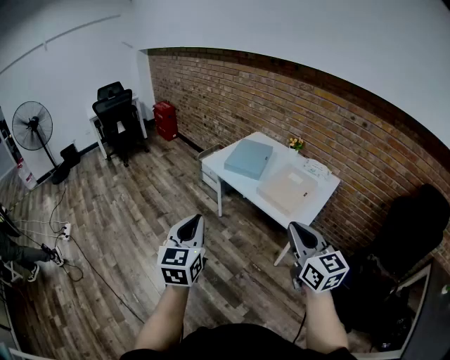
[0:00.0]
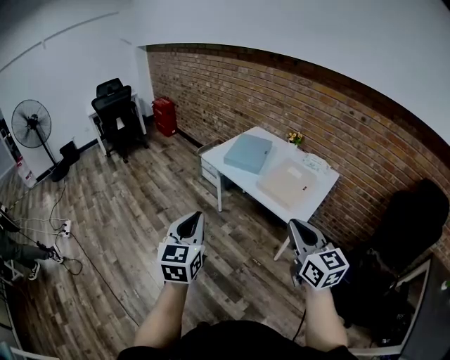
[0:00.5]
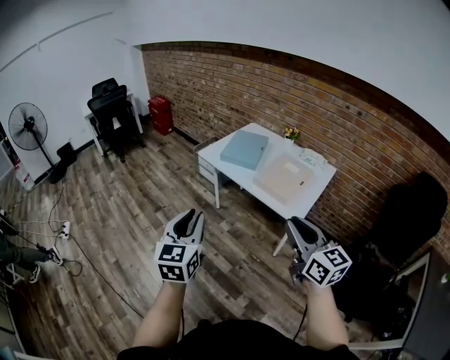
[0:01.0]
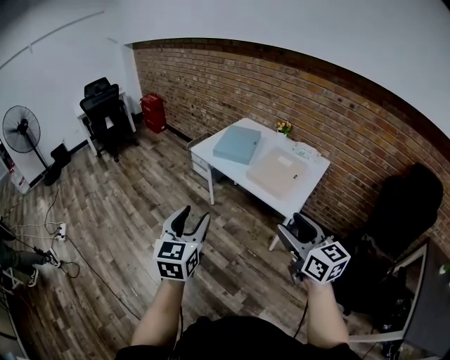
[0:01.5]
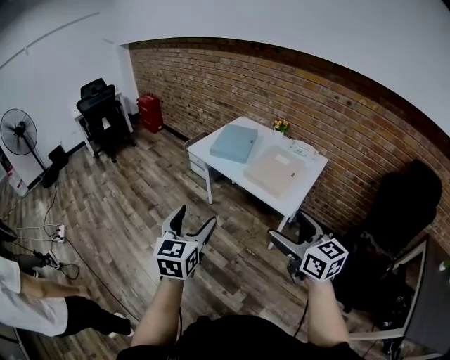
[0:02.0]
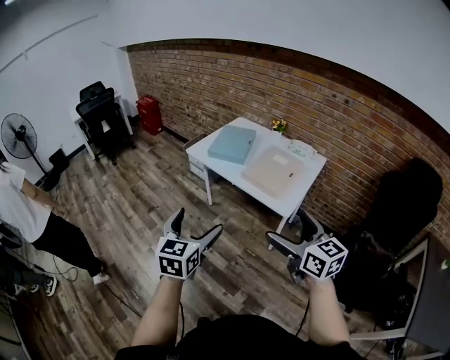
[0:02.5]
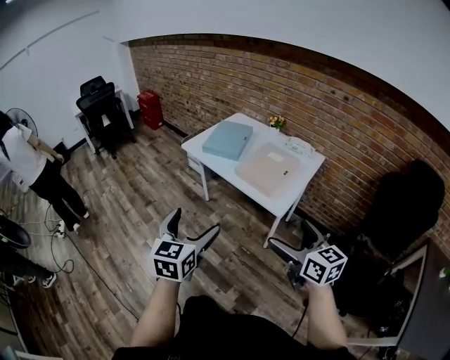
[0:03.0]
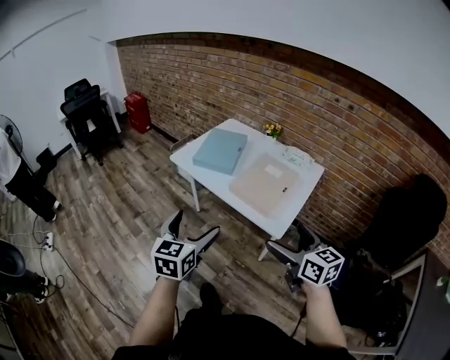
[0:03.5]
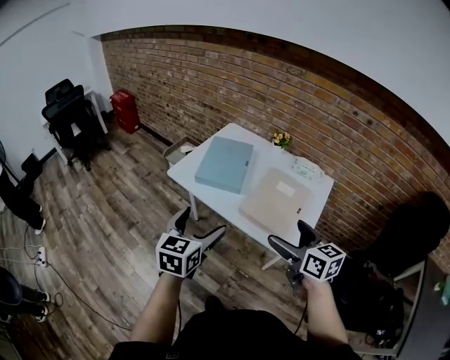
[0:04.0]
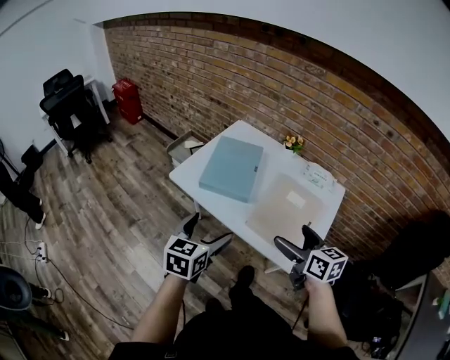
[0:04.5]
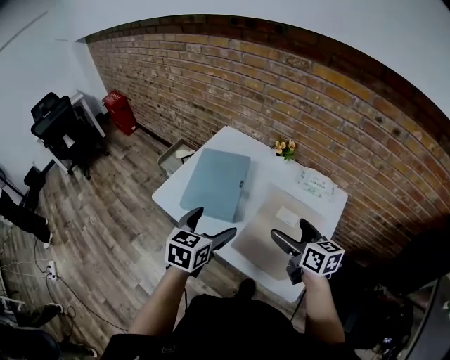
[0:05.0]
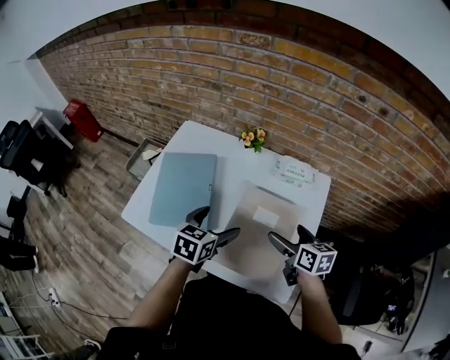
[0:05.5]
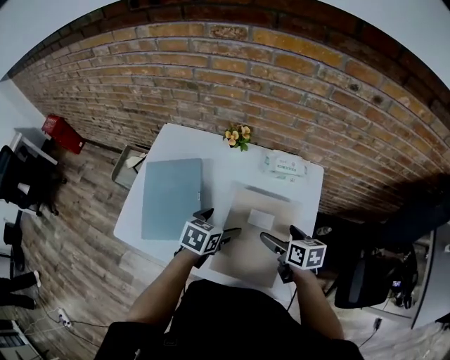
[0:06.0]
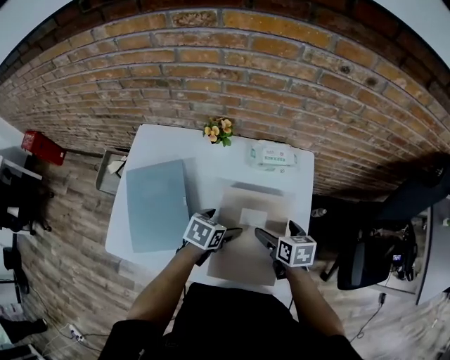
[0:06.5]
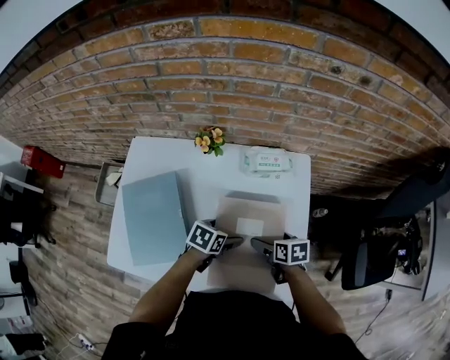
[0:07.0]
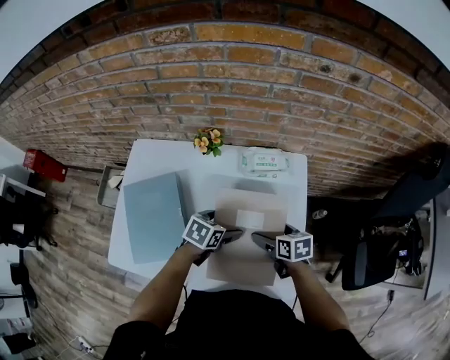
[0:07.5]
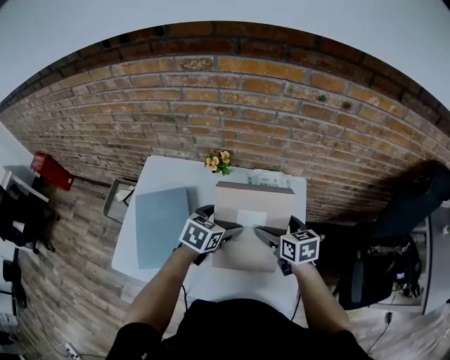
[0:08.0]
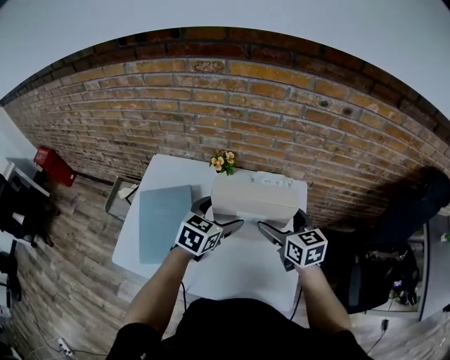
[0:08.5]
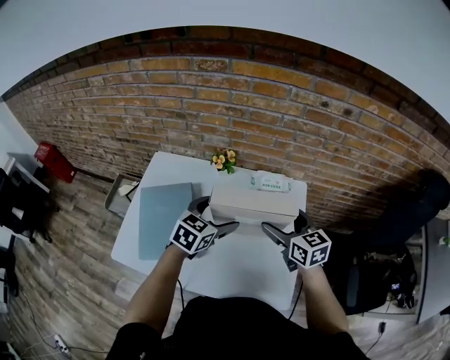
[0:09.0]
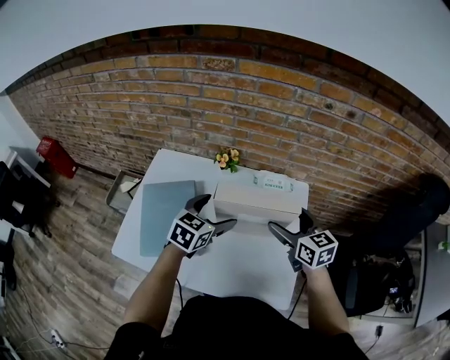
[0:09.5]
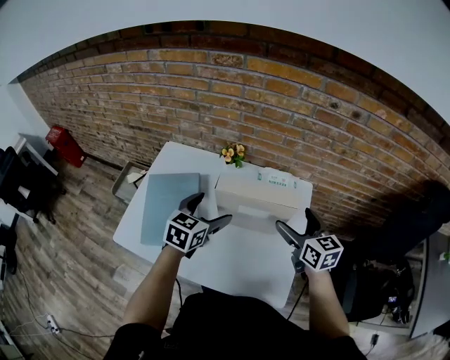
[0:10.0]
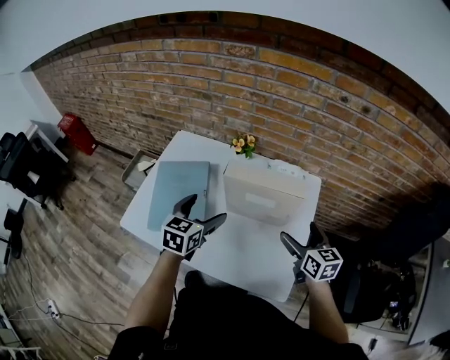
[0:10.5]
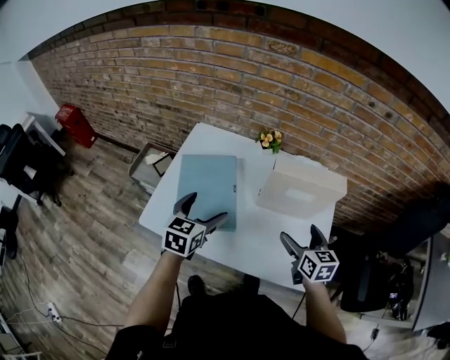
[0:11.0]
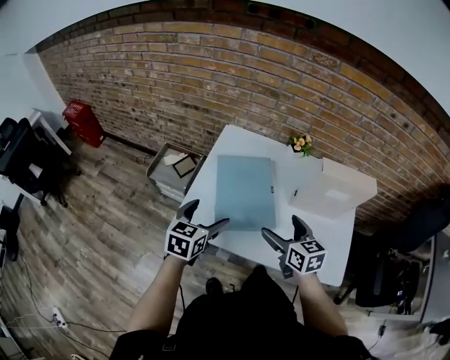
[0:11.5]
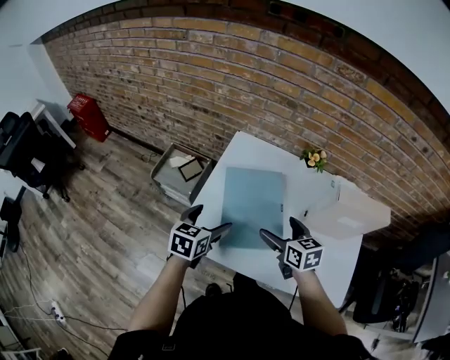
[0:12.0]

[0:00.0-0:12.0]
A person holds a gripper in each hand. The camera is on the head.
0:00.0 to 0:02.0: The left gripper opens its fingers. Meanwhile the right gripper opens up.
0:02.0 to 0:04.0: Both grippers move forward, some 25 cm.
0:04.0 to 0:06.0: The right gripper shifts by approximately 35 cm, and changes its angle by approximately 40 degrees, while the left gripper moves about 40 cm, and turns by about 50 degrees.
0:06.0 to 0:08.0: Both grippers travel together forward and upward, some 10 cm.
0:08.0 to 0:10.0: The left gripper heads upward and to the left, covering some 10 cm. The right gripper heads upward, covering some 10 cm.
0:10.0 to 0:12.0: Both grippers move to the left, some 35 cm.

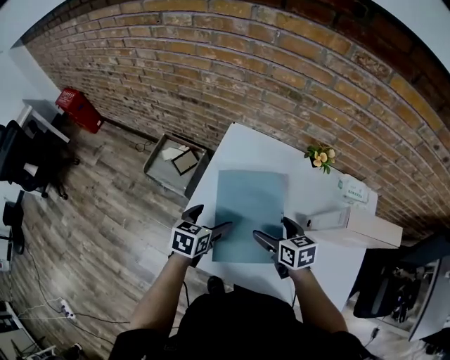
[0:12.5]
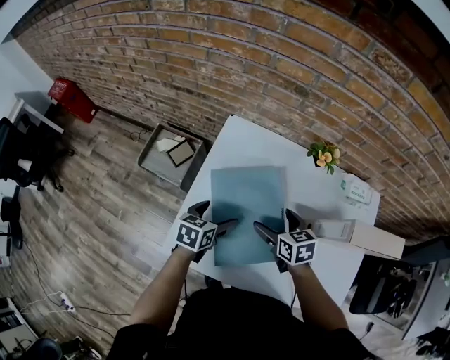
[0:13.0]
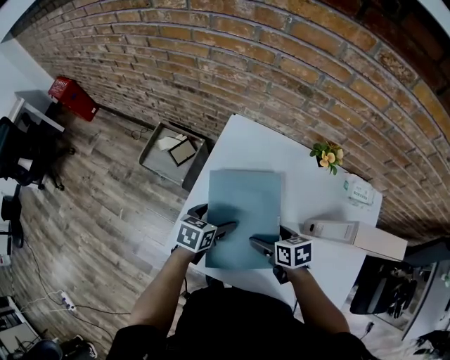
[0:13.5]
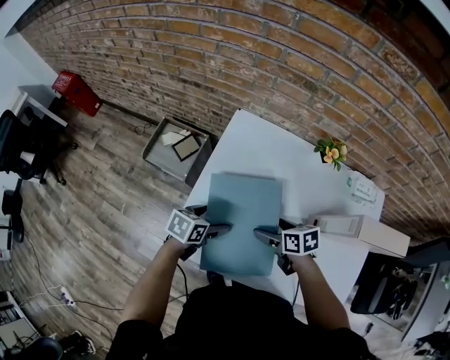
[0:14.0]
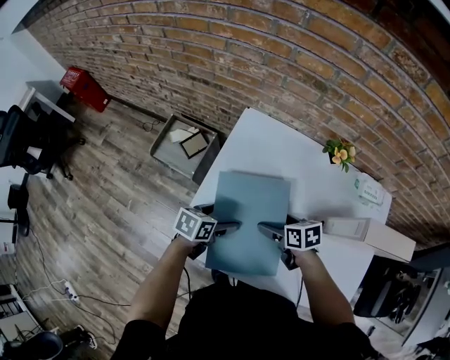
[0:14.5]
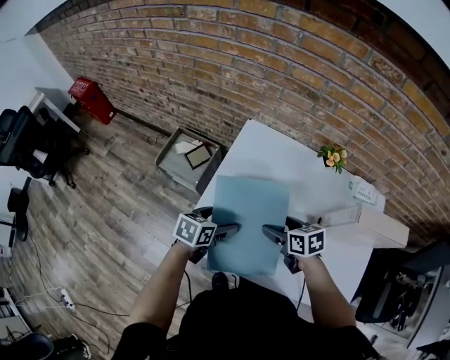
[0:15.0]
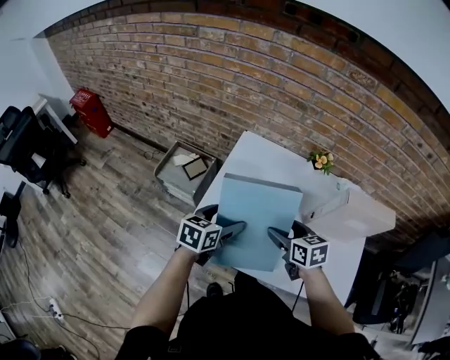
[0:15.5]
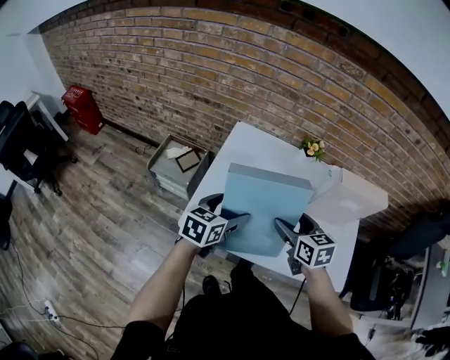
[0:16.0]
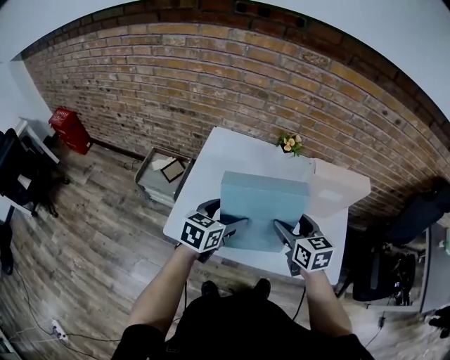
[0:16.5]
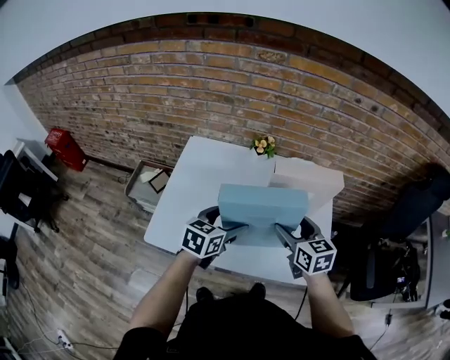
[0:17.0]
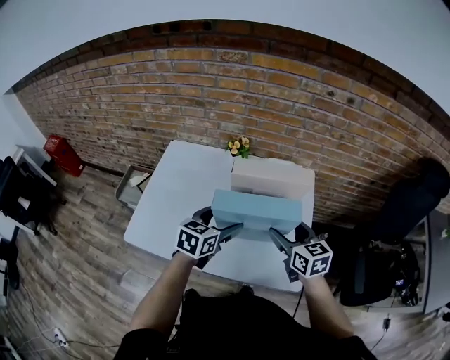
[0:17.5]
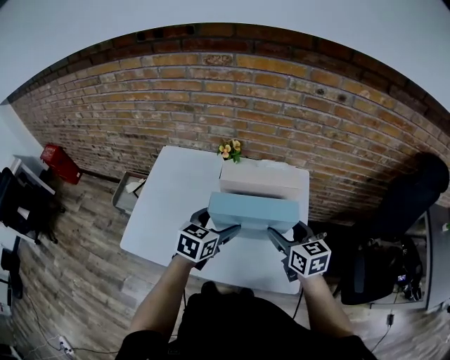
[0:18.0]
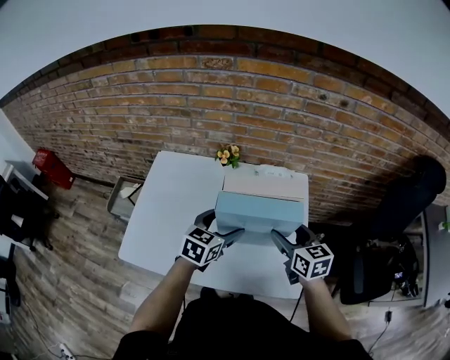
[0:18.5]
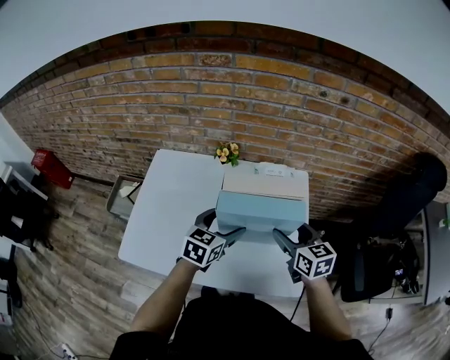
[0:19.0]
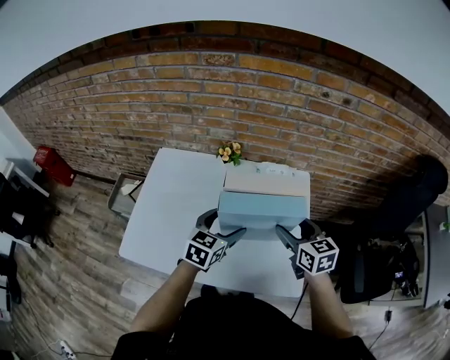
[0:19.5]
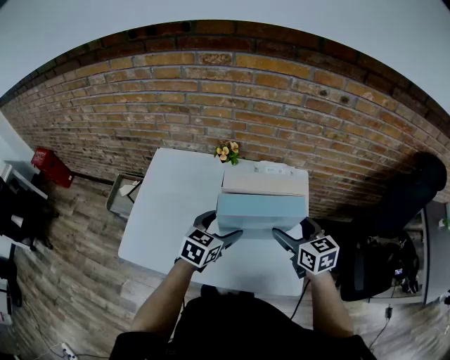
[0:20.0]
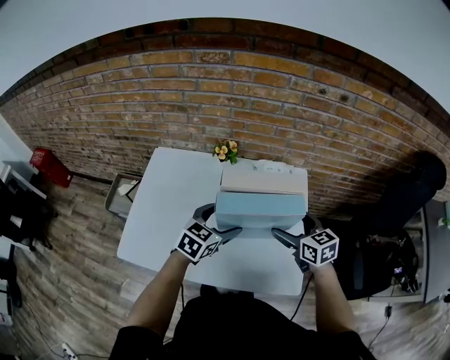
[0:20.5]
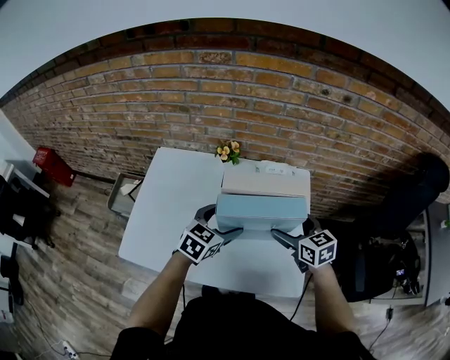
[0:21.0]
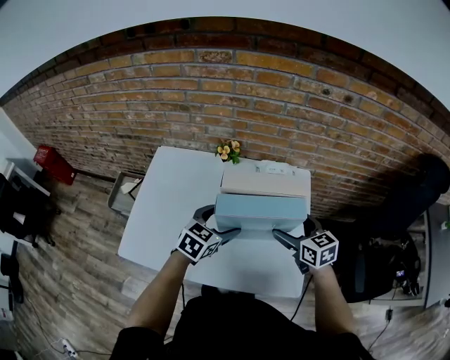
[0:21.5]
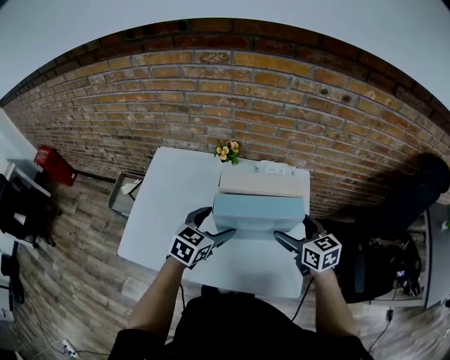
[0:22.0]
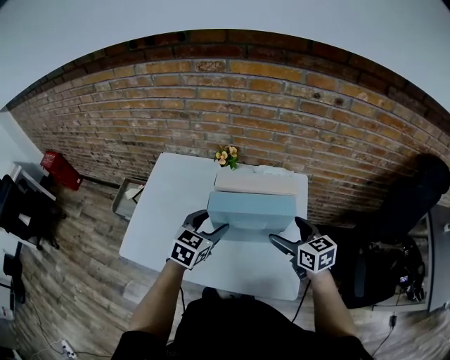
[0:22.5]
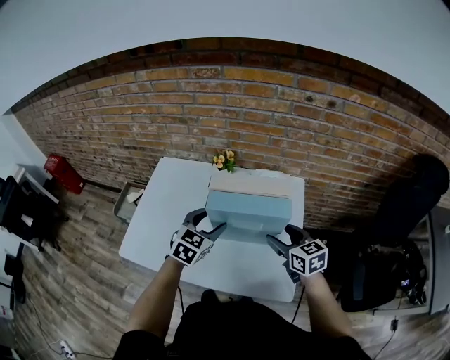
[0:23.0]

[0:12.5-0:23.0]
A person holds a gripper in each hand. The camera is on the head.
0:12.5 to 0:14.5: Both grippers move downward, about 5 cm.
0:14.5 to 0:16.5: The left gripper shifts roughly 20 cm upward, to the right and backward, and turns by some 30 degrees. Meanwhile the right gripper travels upward, backward and to the right by some 25 cm, and rotates roughly 40 degrees.
0:16.5 to 0:19.0: The left gripper travels to the right and forward by some 25 cm. The right gripper goes roughly 25 cm to the right.
0:19.0 to 0:23.0: The grippers move only a little.

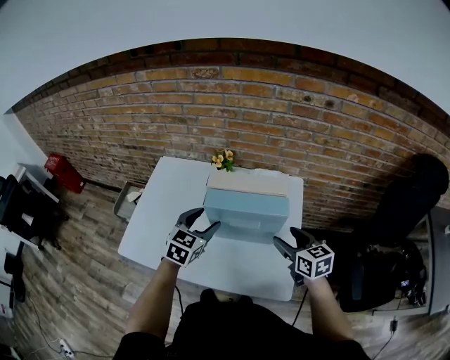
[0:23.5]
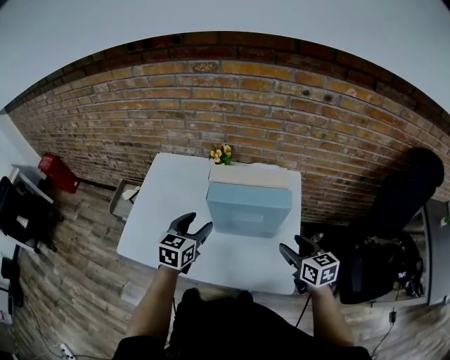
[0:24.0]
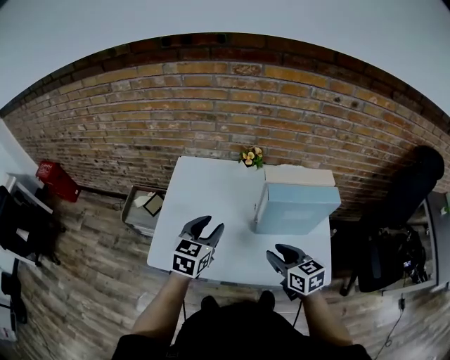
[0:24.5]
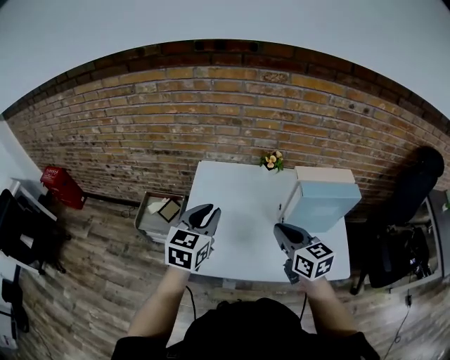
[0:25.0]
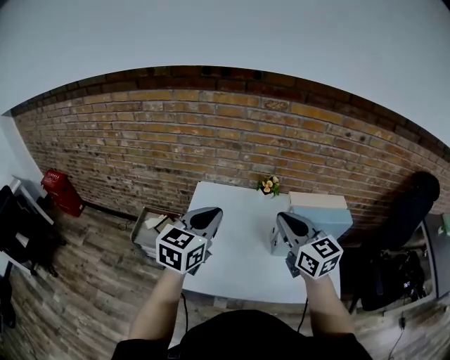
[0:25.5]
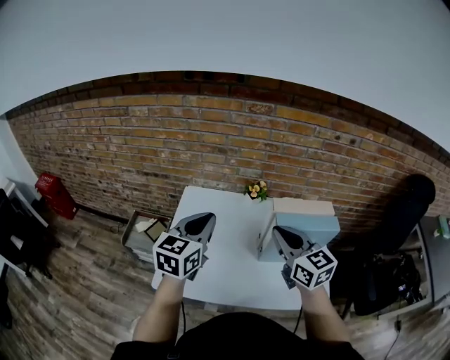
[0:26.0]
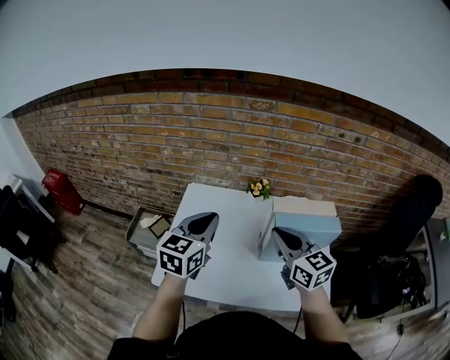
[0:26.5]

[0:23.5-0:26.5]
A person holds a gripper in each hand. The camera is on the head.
0:23.5 to 0:25.0: Both grippers move to the left, some 30 cm. The right gripper closes up. Meanwhile the left gripper closes.
0:25.0 to 0:26.5: The left gripper goes about 10 cm to the right and upward. The right gripper goes roughly 10 cm upward and to the right.

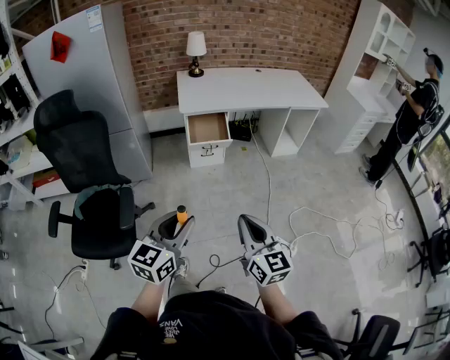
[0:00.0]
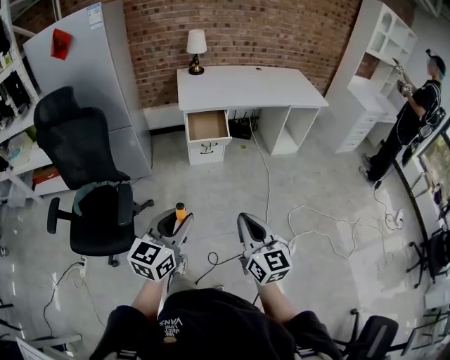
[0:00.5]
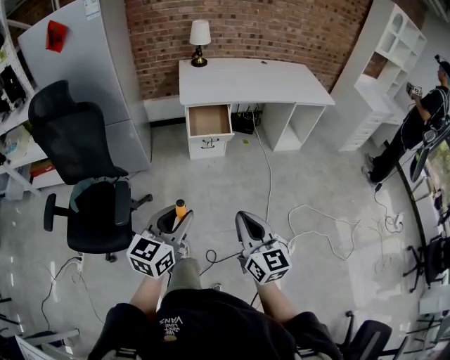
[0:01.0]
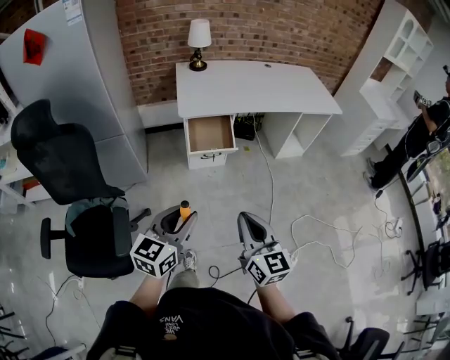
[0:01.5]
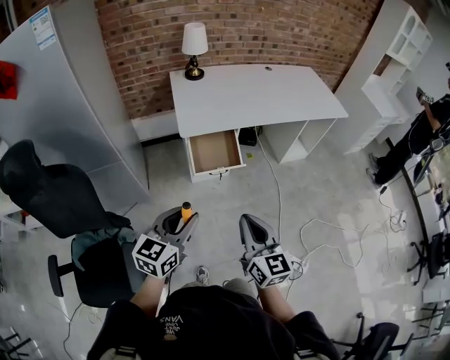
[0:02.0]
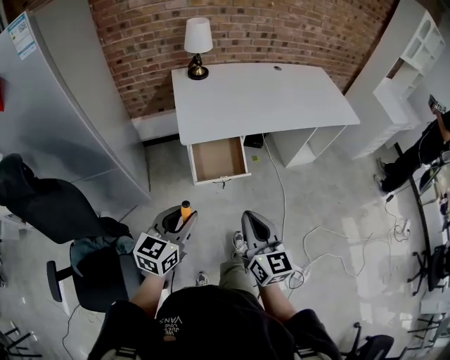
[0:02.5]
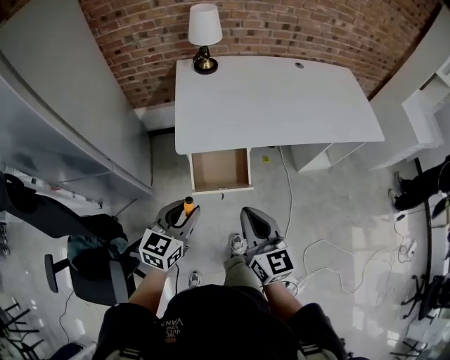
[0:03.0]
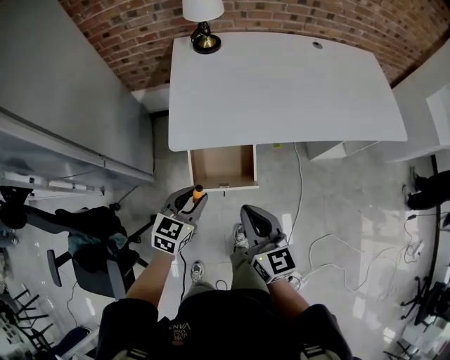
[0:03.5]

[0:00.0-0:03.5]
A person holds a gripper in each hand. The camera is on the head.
0:00.0 to 0:02.0: Both grippers travel together forward, about 35 cm.
0:02.0 to 0:03.5: The left gripper is displaced forward and downward by some 40 cm. The right gripper moves forward, some 35 cm.
